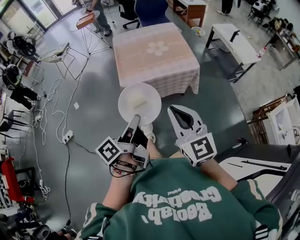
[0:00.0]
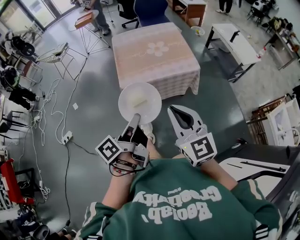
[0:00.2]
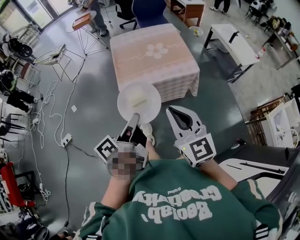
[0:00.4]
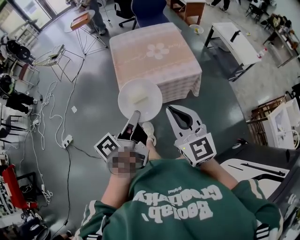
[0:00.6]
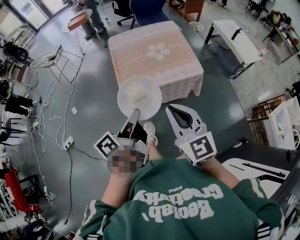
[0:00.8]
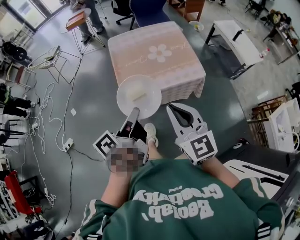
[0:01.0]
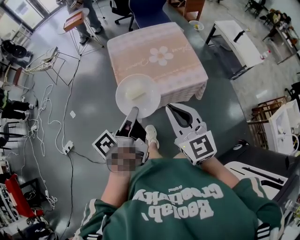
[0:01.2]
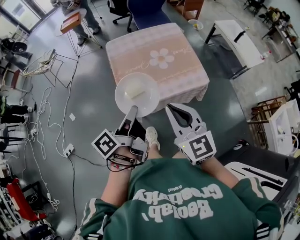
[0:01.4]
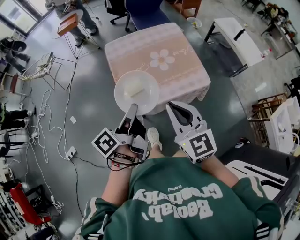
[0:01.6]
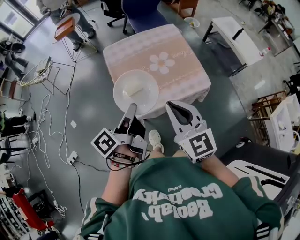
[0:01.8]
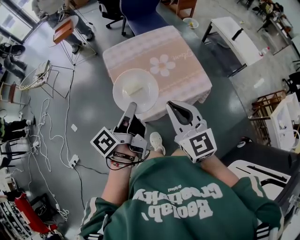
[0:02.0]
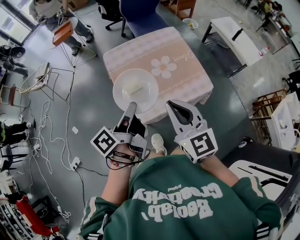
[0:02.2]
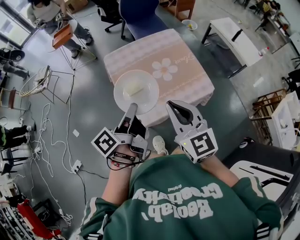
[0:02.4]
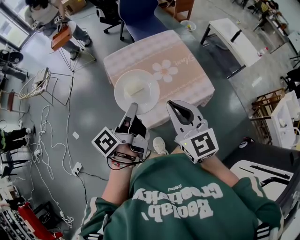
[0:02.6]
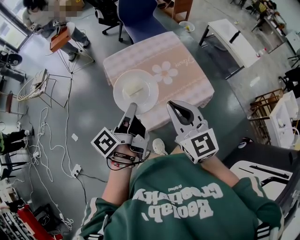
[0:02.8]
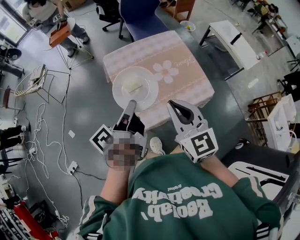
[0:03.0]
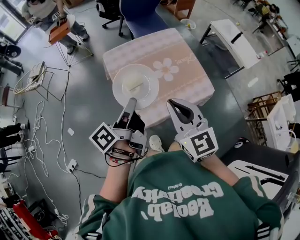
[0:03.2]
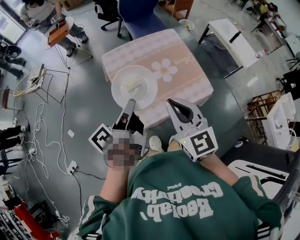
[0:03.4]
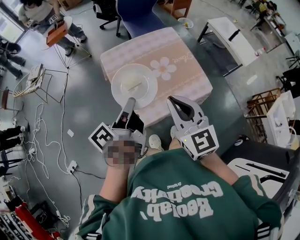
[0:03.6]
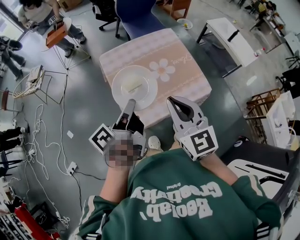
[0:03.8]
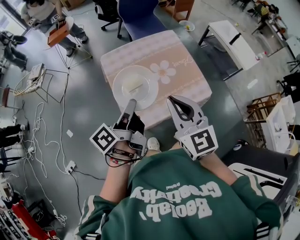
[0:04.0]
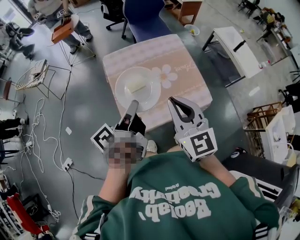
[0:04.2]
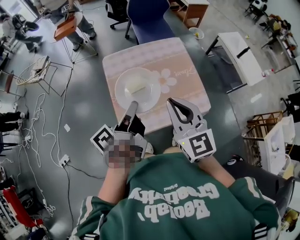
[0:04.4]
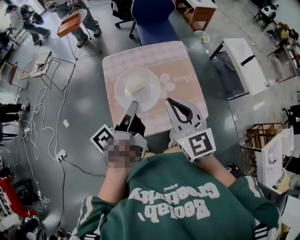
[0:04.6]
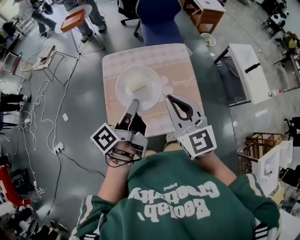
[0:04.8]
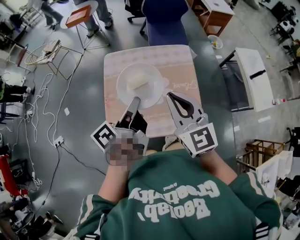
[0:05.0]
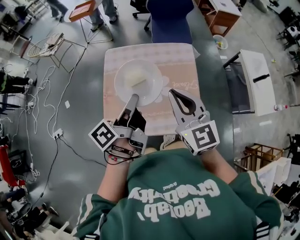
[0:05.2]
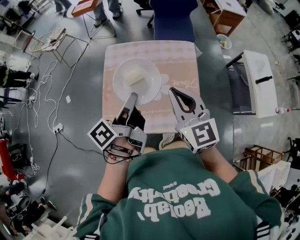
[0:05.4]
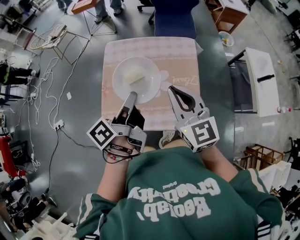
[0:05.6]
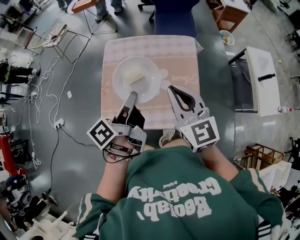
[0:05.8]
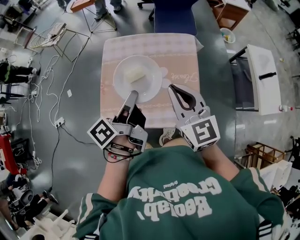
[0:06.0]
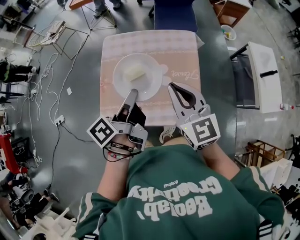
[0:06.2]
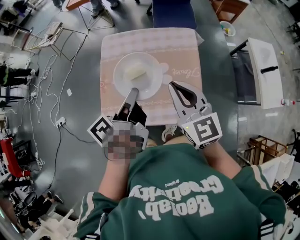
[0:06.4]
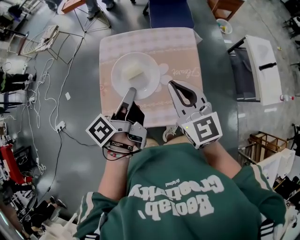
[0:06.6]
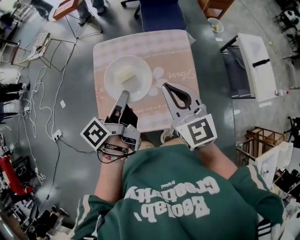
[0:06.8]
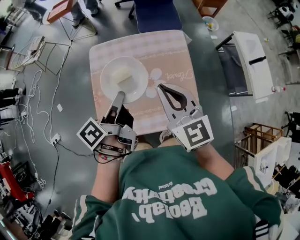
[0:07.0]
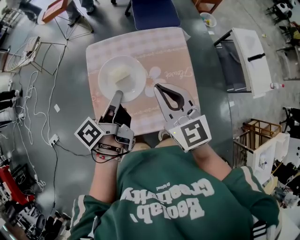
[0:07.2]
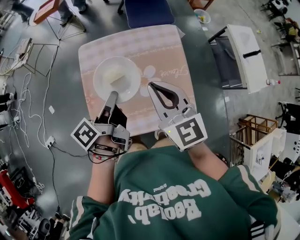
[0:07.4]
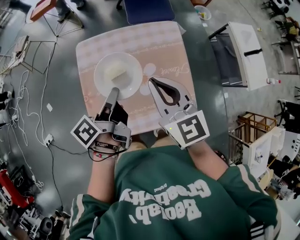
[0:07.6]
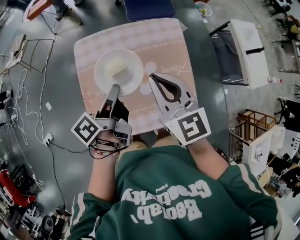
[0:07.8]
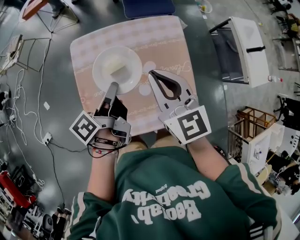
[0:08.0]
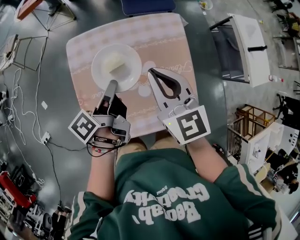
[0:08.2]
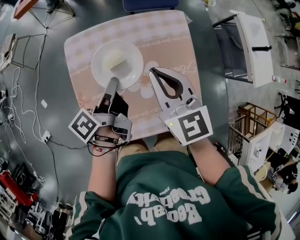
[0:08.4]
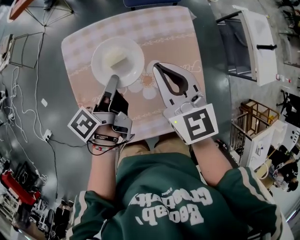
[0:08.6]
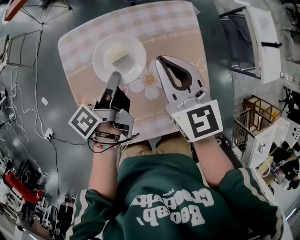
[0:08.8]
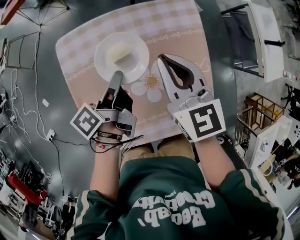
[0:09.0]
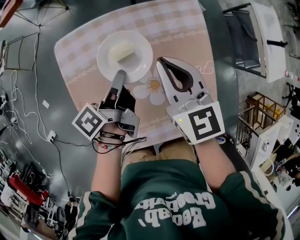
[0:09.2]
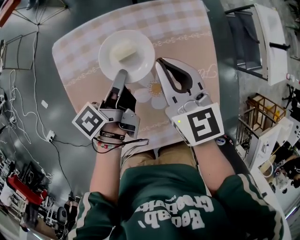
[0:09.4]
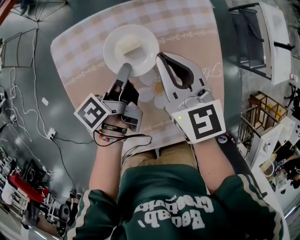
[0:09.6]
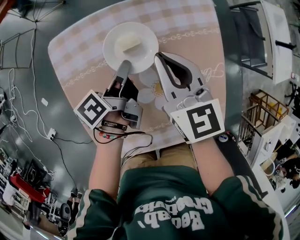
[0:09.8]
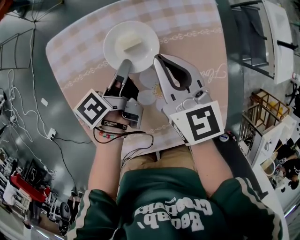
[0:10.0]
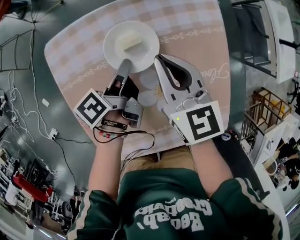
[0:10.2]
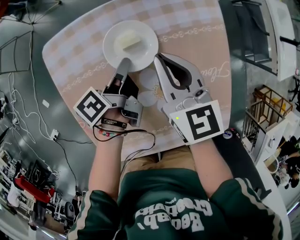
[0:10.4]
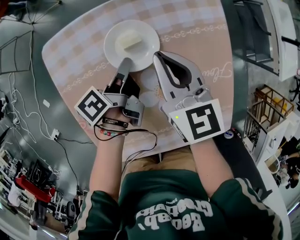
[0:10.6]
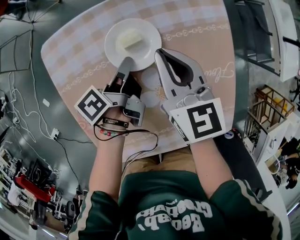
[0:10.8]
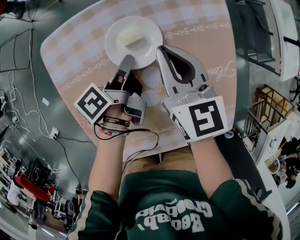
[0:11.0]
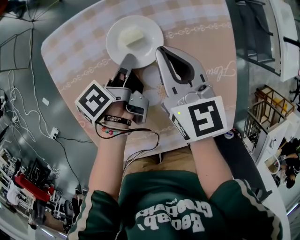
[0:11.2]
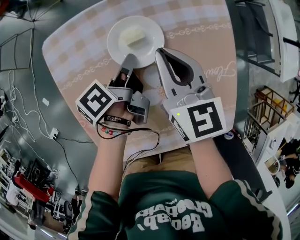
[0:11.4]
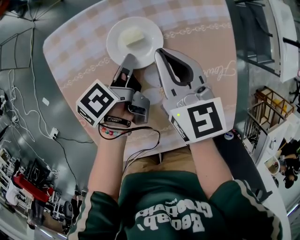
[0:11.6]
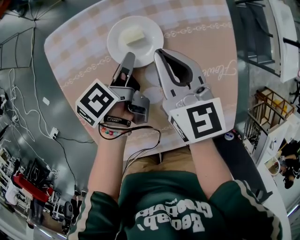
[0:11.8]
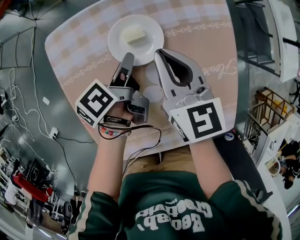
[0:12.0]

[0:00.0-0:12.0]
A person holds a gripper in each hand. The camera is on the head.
0:00.0 to 0:01.6: The right gripper shifts by approximately 25 cm.
0:01.6 to 0:03.0: The right gripper changes place by roughly 10 cm.
0:03.0 to 0:04.4: The right gripper moves some 10 cm.
0:04.4 to 0:06.0: The right gripper changes place by approximately 20 cm.
0:06.0 to 0:07.6: The right gripper moves some 10 cm.
0:07.6 to 0:09.0: The right gripper ends up approximately 20 cm from where it was.
0:09.0 to 0:10.4: The right gripper is displaced downward by roughly 10 cm.

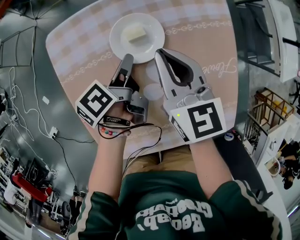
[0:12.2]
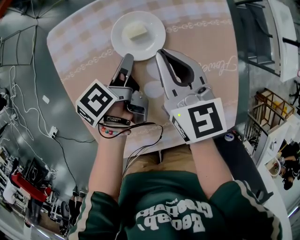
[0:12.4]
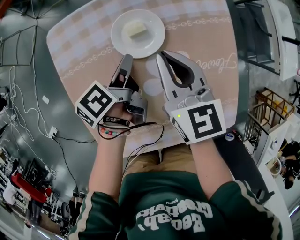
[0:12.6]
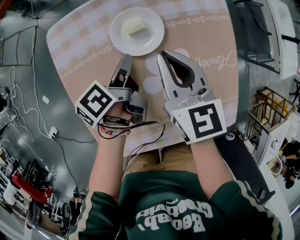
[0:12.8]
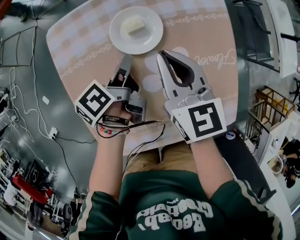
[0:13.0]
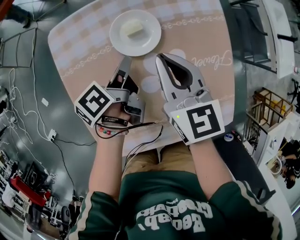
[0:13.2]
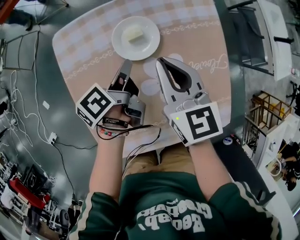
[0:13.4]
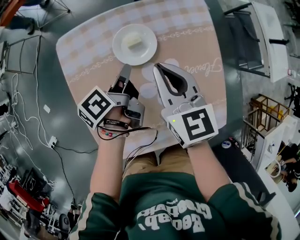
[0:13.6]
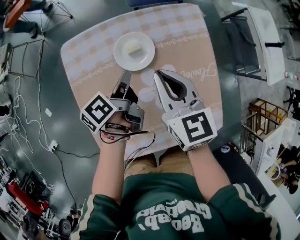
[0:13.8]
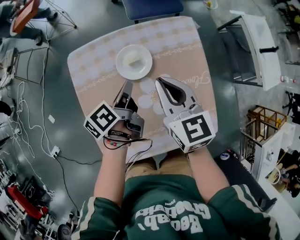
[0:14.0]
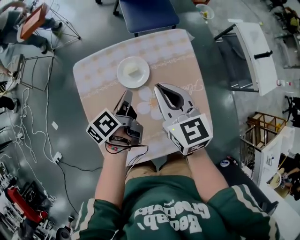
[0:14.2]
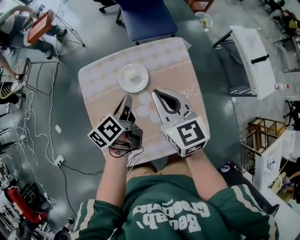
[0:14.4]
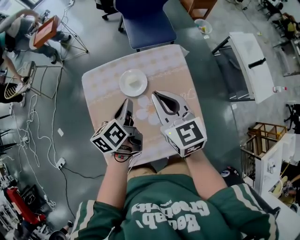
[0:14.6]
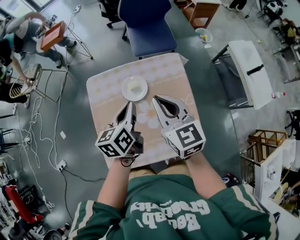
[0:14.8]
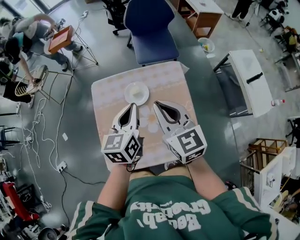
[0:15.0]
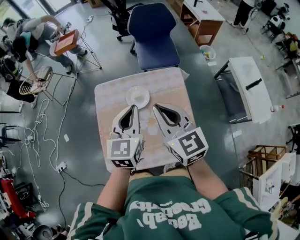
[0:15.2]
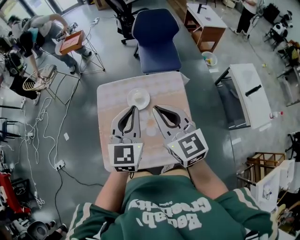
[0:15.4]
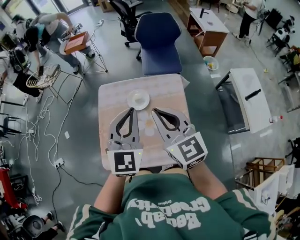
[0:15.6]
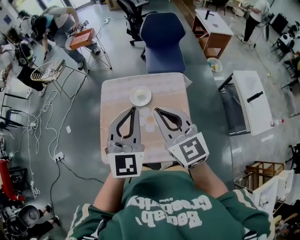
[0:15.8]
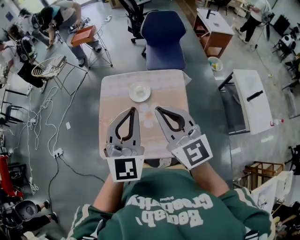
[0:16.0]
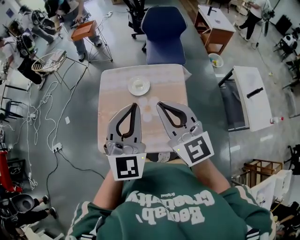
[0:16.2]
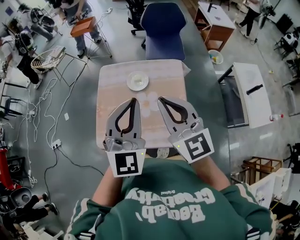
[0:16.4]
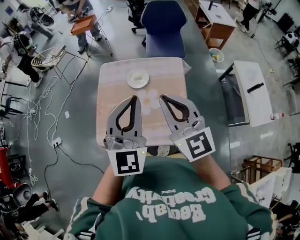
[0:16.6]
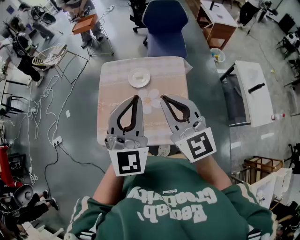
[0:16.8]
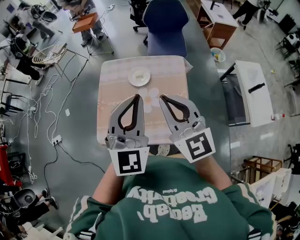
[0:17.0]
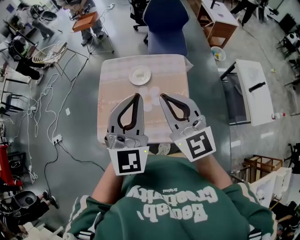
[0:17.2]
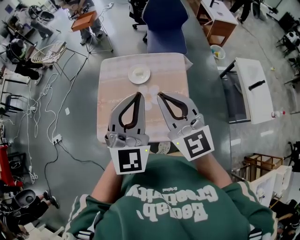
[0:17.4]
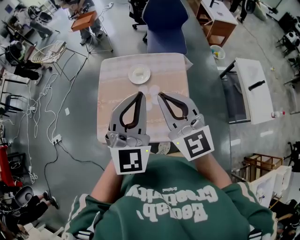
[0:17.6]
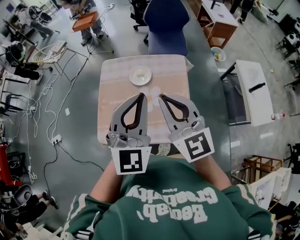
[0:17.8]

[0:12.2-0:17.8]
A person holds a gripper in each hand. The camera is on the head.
0:13.6 to 0:15.0: The right gripper goes approximately 20 cm upward.
0:15.0 to 0:16.4: The right gripper shifts by some 15 cm, and rotates roughly 20 degrees.

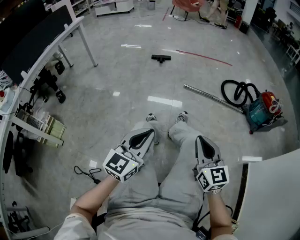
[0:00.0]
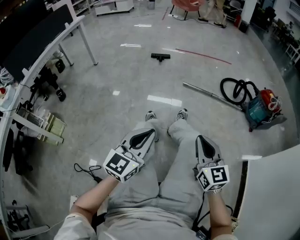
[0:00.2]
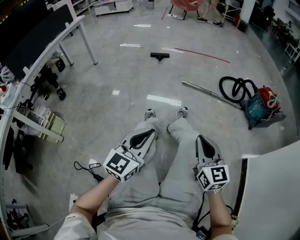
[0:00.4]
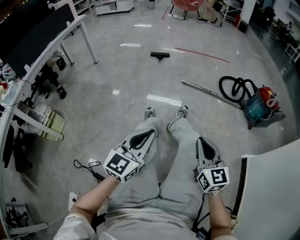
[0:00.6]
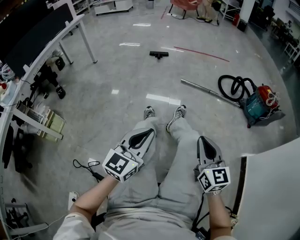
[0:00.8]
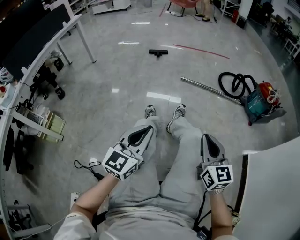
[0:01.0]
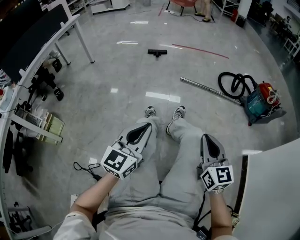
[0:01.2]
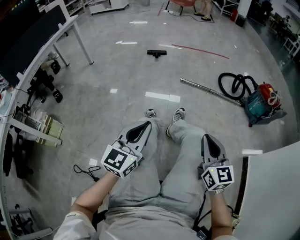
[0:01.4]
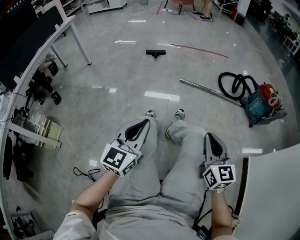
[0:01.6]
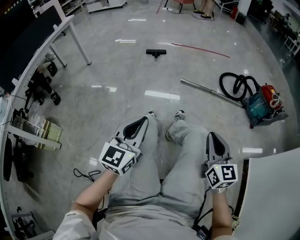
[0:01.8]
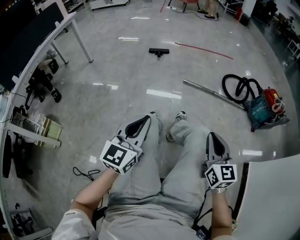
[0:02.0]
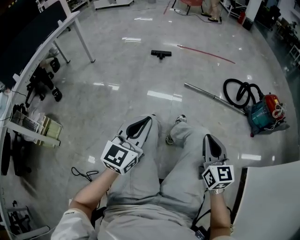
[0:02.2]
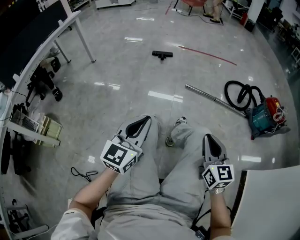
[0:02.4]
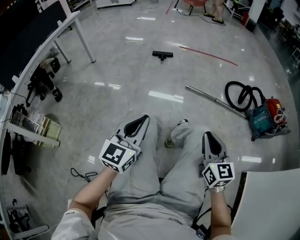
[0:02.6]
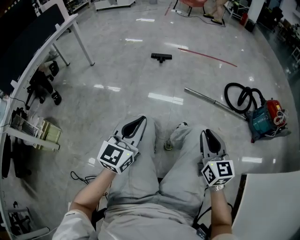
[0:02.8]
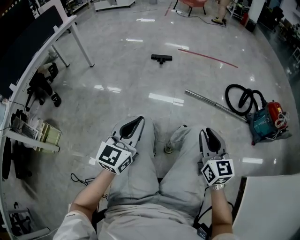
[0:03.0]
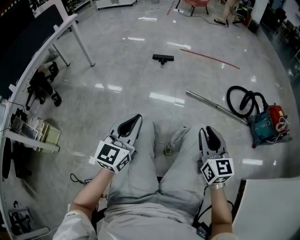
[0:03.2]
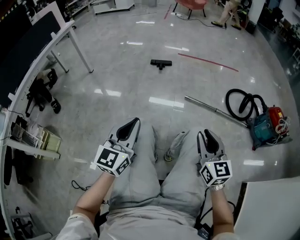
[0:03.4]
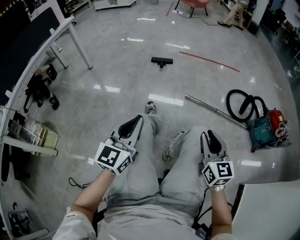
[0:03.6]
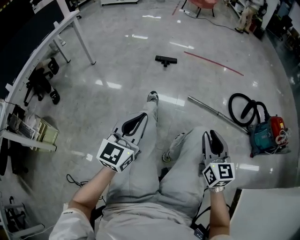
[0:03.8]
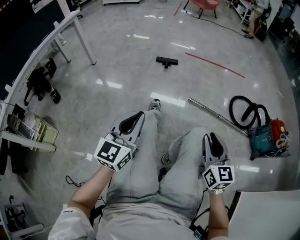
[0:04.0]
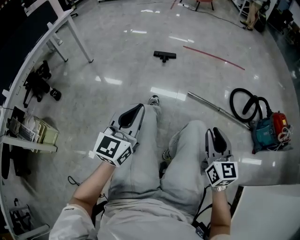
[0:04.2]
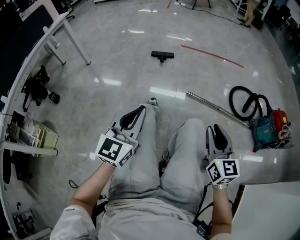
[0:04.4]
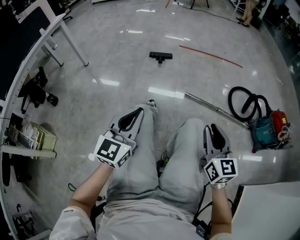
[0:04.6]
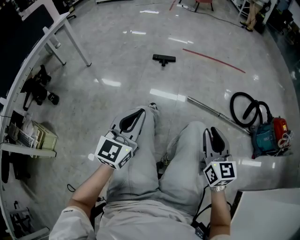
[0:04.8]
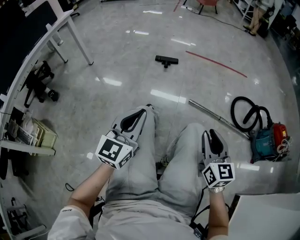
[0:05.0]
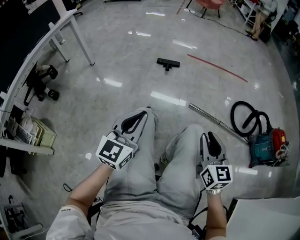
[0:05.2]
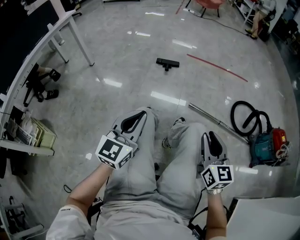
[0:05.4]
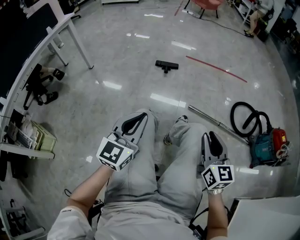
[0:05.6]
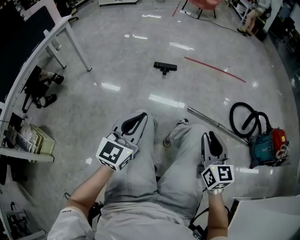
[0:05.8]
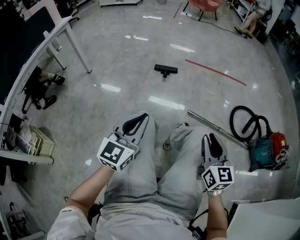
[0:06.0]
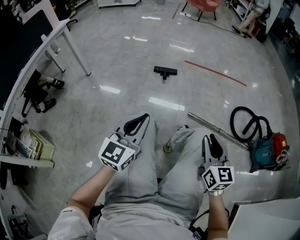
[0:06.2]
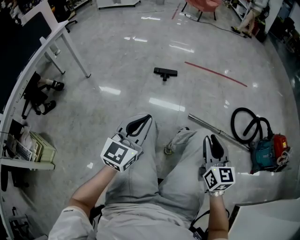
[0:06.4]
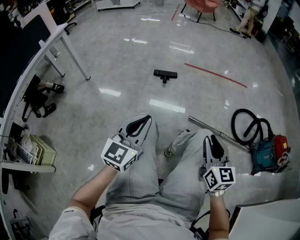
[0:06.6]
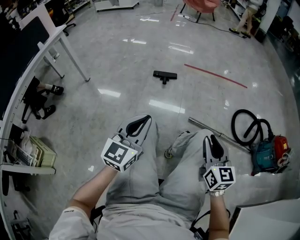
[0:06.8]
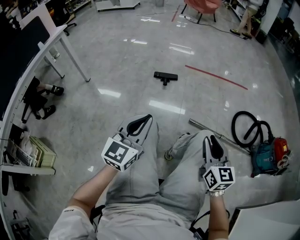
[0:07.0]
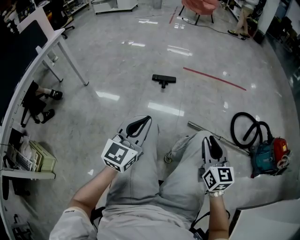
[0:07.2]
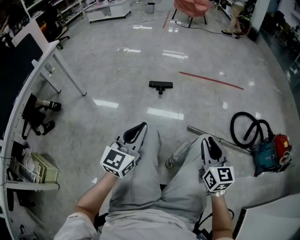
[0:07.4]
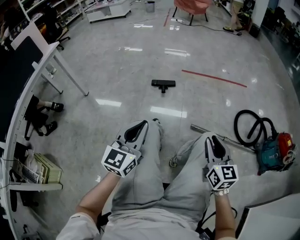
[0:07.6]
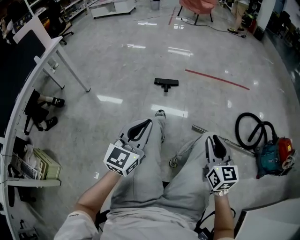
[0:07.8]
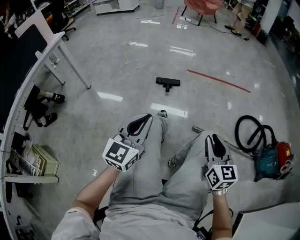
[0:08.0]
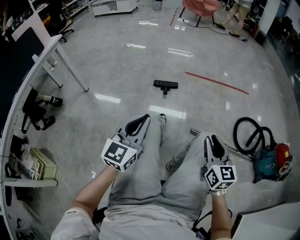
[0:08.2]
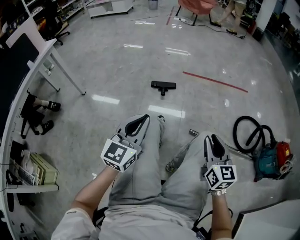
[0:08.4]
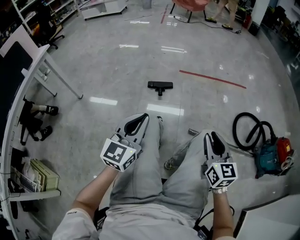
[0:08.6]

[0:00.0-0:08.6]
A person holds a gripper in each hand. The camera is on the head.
0:01.4 to 0:02.8: The two grippers go approximately 15 cm forward.
0:02.8 to 0:04.4: The grippers both shift forward by some 15 cm.
0:04.4 to 0:05.8: The grippers both shift forward by roughly 10 cm.
0:05.8 to 0:07.2: The two grippers go about 10 cm forward.
0:07.2 to 0:08.6: The two grippers go roughly 10 cm forward.
